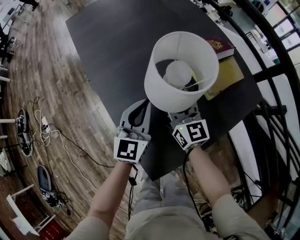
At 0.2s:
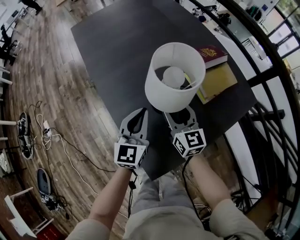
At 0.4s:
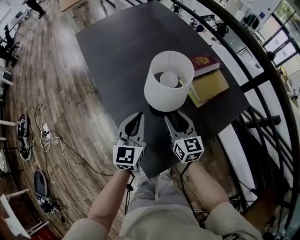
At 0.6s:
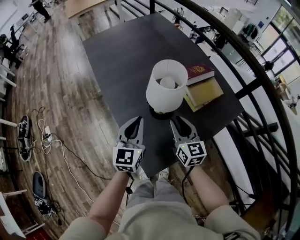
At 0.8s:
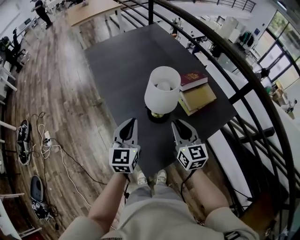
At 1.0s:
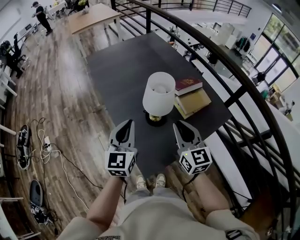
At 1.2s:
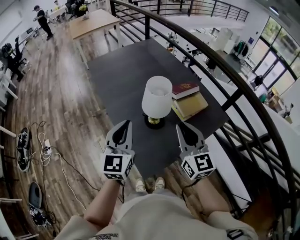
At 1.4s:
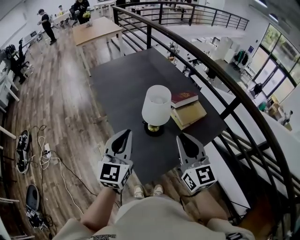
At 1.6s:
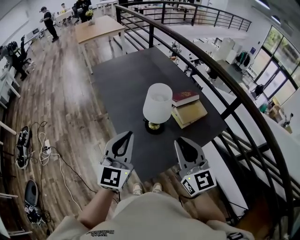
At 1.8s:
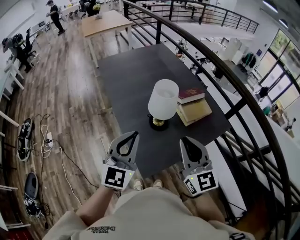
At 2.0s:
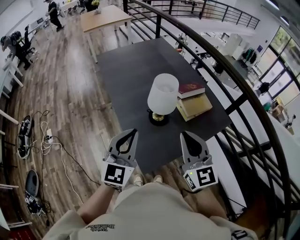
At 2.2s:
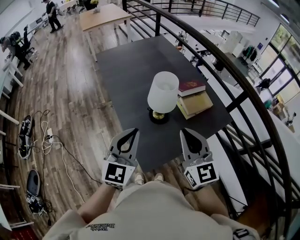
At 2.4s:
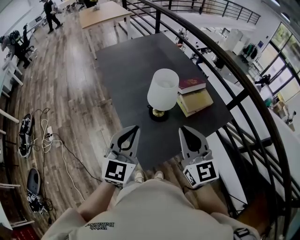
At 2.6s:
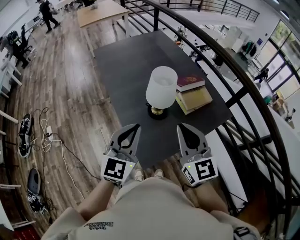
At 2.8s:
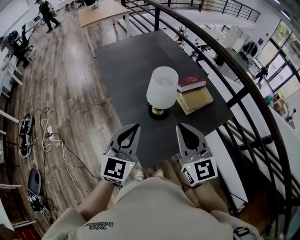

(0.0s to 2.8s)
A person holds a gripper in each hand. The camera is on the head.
0.0s - 1.4s: The two grippers go roughly 35 cm upward and backward. The right gripper closes.
1.4s - 2.8s: The grippers move only a little.

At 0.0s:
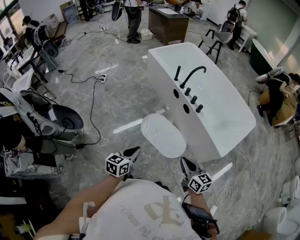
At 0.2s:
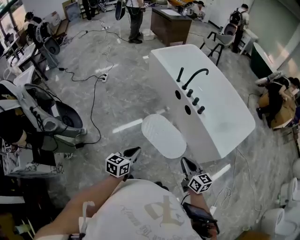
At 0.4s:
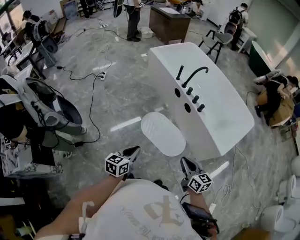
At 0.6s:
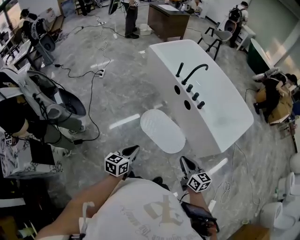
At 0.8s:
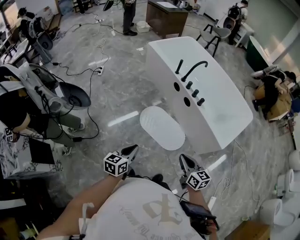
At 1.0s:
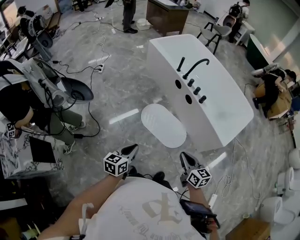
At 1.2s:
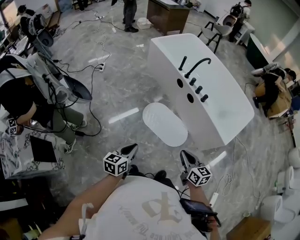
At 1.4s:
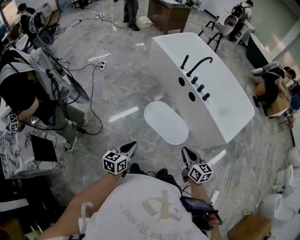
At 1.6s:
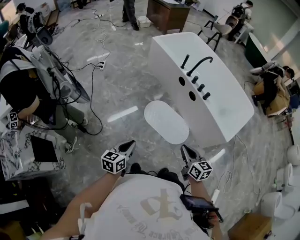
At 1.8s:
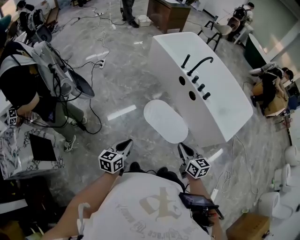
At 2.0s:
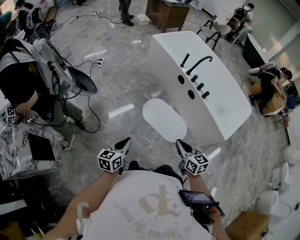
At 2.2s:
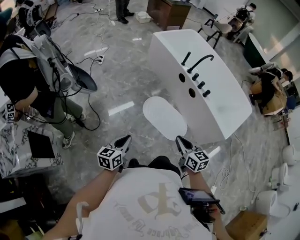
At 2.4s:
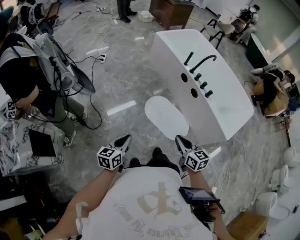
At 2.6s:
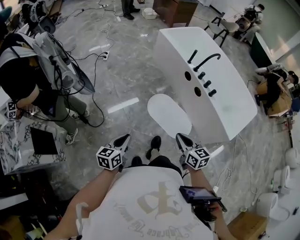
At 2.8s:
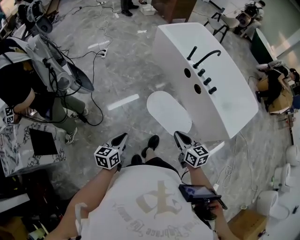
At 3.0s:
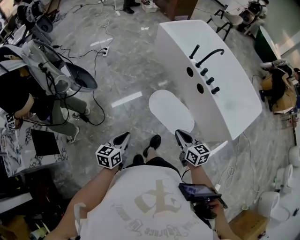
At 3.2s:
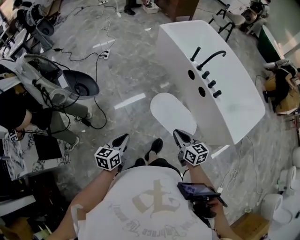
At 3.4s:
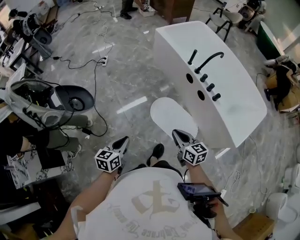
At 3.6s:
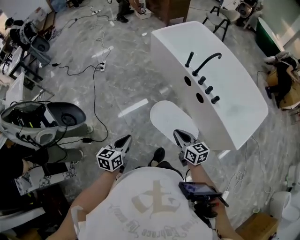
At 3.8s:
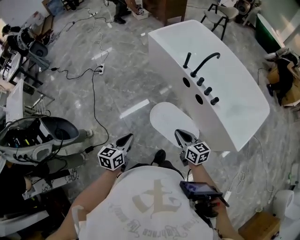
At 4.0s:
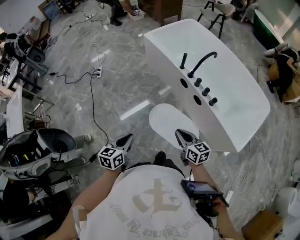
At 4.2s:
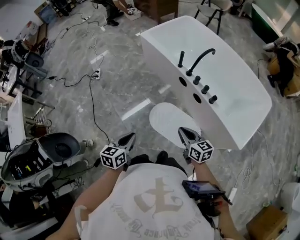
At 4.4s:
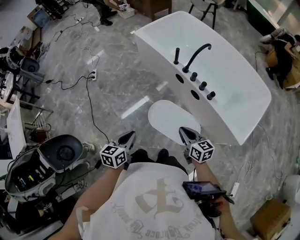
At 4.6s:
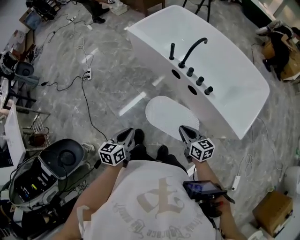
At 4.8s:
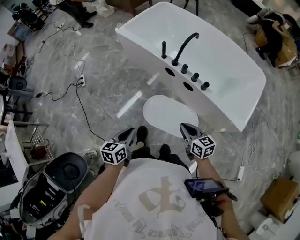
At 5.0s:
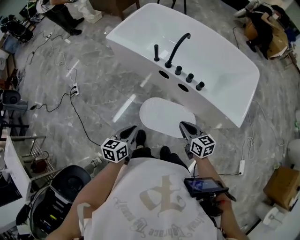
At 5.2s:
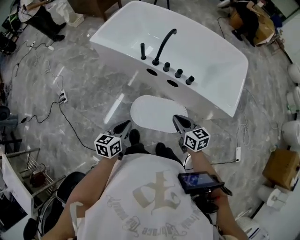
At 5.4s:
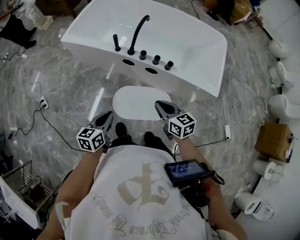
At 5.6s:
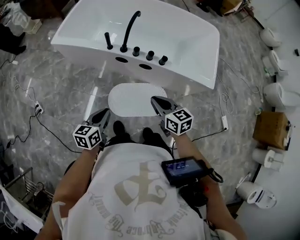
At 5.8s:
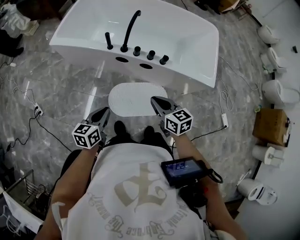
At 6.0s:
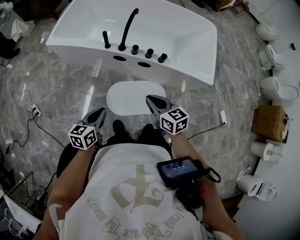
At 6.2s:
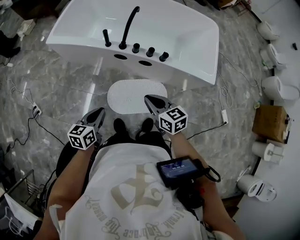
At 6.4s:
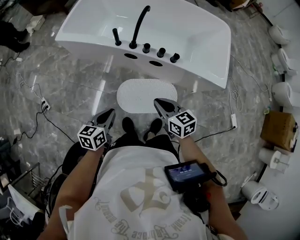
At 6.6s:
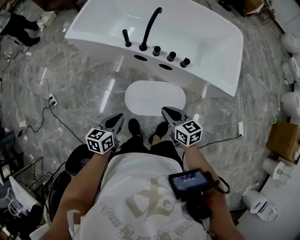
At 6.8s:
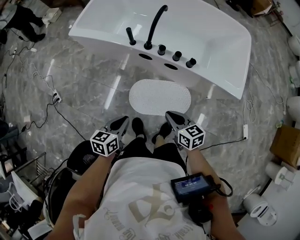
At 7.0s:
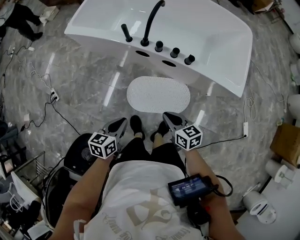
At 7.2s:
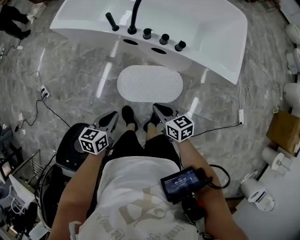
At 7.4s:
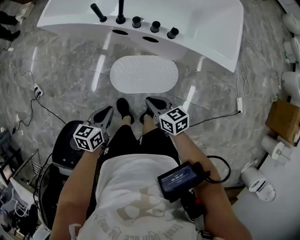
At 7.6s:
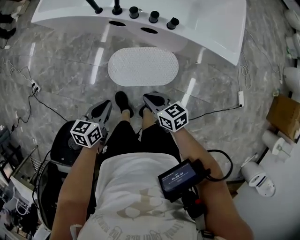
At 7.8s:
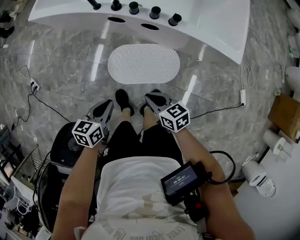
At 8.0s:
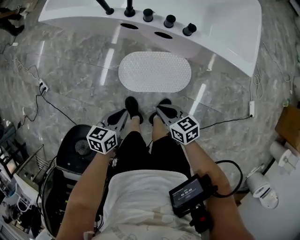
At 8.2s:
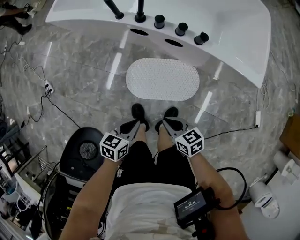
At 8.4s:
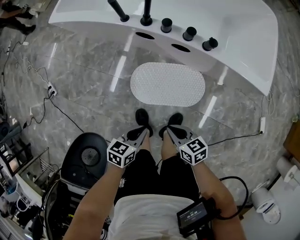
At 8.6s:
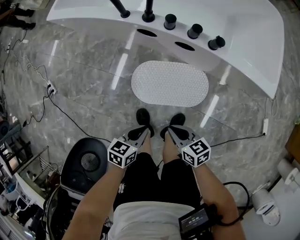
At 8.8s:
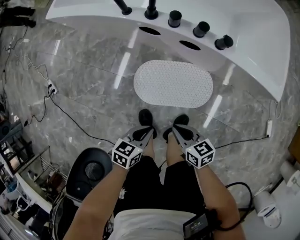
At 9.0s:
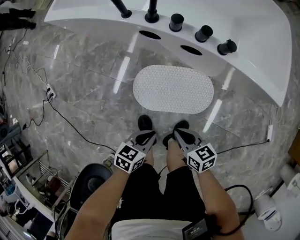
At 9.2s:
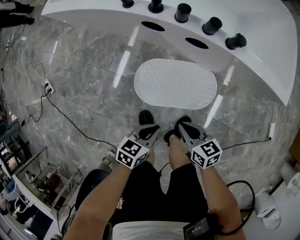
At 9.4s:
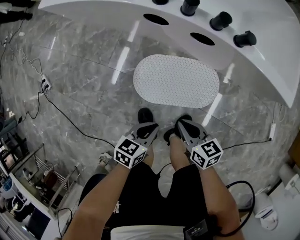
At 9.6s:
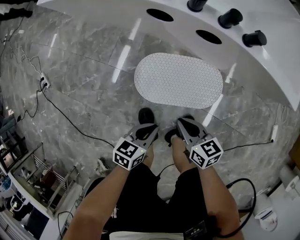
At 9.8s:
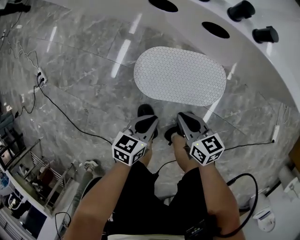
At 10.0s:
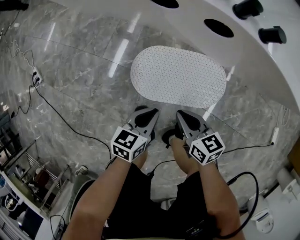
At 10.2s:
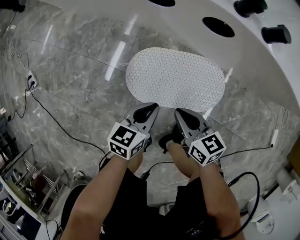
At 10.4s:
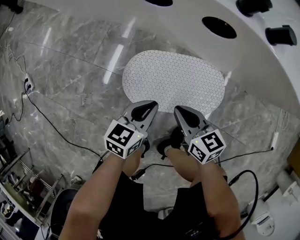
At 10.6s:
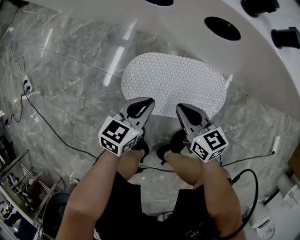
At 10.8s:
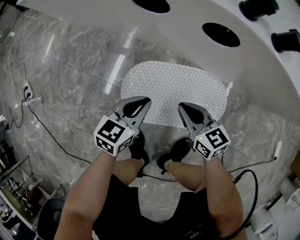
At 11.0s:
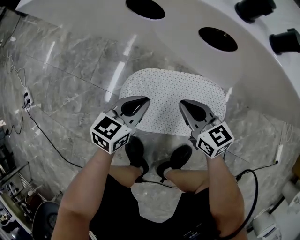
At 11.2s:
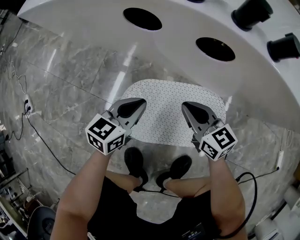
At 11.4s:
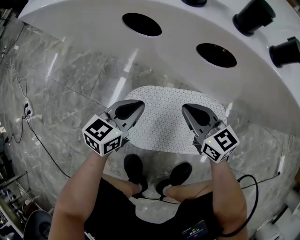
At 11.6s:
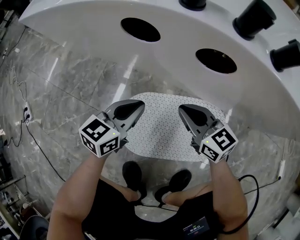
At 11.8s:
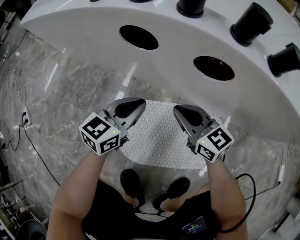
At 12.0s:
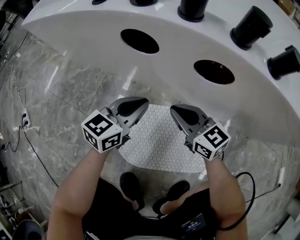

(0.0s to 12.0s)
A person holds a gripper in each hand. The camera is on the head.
0.0s - 1.6s: The right gripper shifts approximately 15 cm to the left, while the left gripper goes approximately 20 cm to the left and backward.
1.6s - 3.0s: The left gripper changes place by about 5 cm. Meanwhile the right gripper travels forward and to the left by some 10 cm.
3.0s - 4.4s: The two grippers go approximately 30 cm forward and to the right.
4.4s - 6.0s: The right gripper shifts by approximately 10 cm, and swivels about 30 degrees. Meanwhile the left gripper changes place by roughly 20 cm, and rotates approximately 40 degrees.
6.0s - 7.6s: The right gripper travels downward by some 20 cm. Meanwhile the left gripper moves downward and to the right, about 15 cm.
7.6s - 9.0s: The two grippers go approximately 15 cm downward.
9.0s - 10.4s: Both grippers travel together downward and forward, some 20 cm.
10.4s - 12.0s: The two grippers go about 20 cm forward. The right gripper swivels some 30 degrees.

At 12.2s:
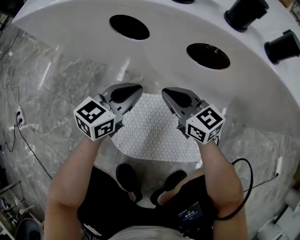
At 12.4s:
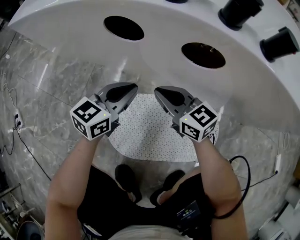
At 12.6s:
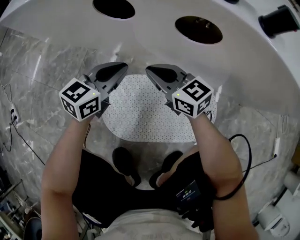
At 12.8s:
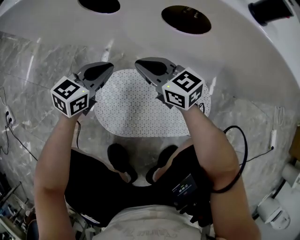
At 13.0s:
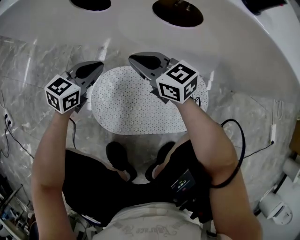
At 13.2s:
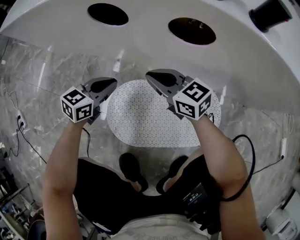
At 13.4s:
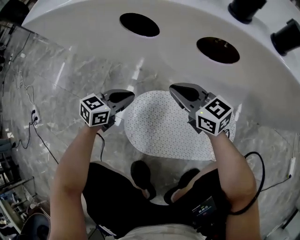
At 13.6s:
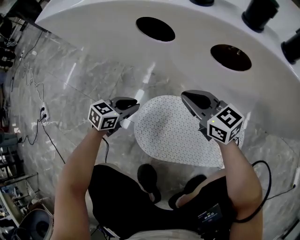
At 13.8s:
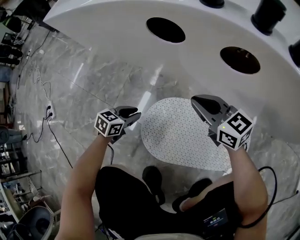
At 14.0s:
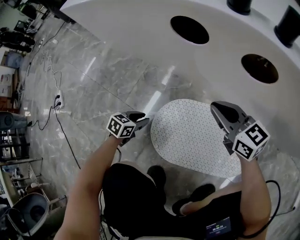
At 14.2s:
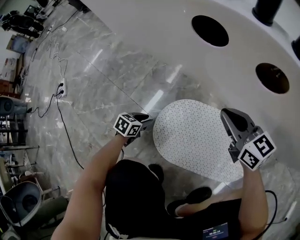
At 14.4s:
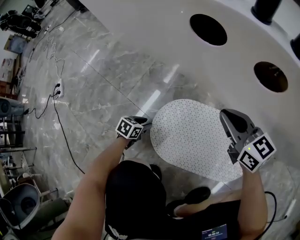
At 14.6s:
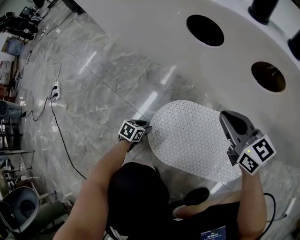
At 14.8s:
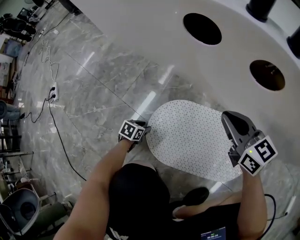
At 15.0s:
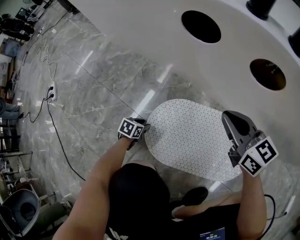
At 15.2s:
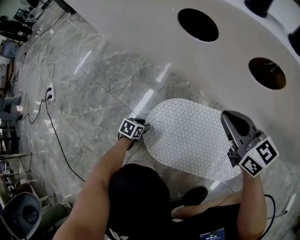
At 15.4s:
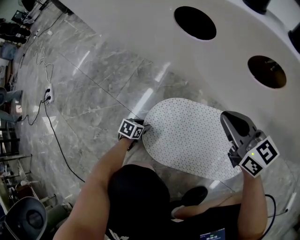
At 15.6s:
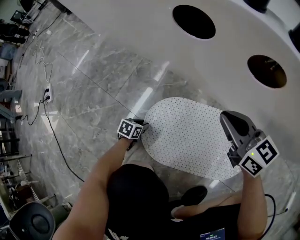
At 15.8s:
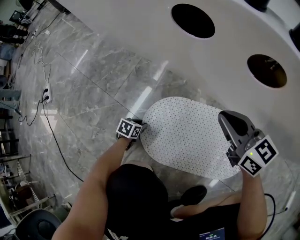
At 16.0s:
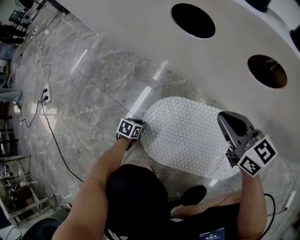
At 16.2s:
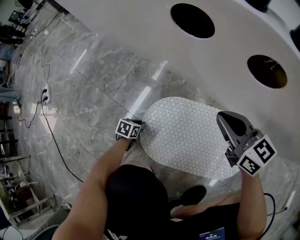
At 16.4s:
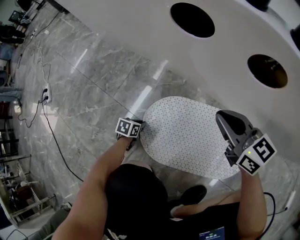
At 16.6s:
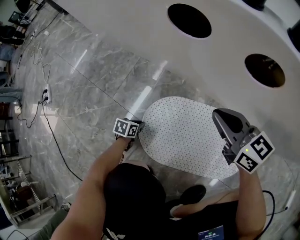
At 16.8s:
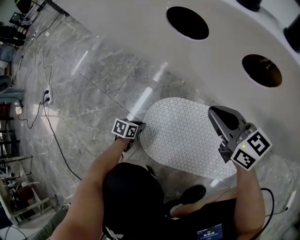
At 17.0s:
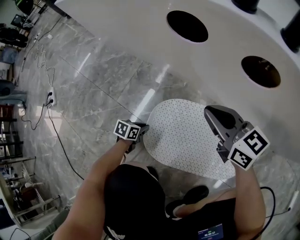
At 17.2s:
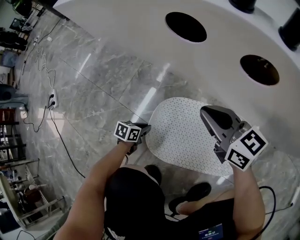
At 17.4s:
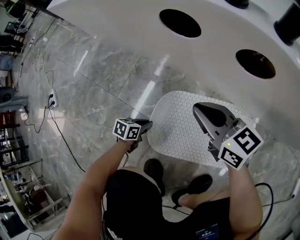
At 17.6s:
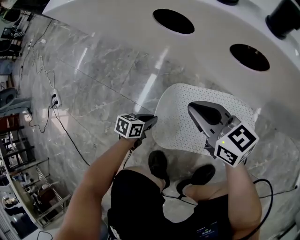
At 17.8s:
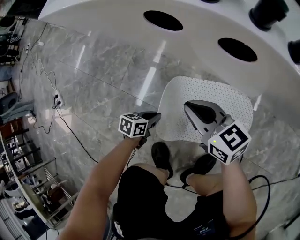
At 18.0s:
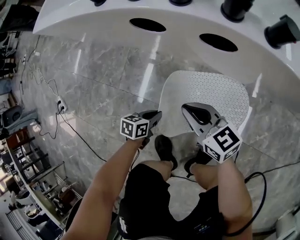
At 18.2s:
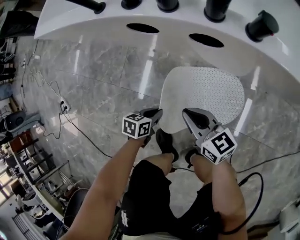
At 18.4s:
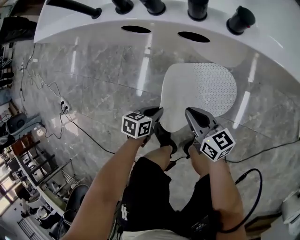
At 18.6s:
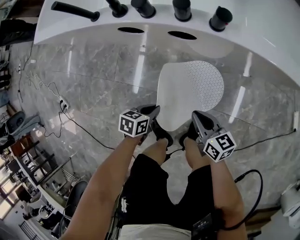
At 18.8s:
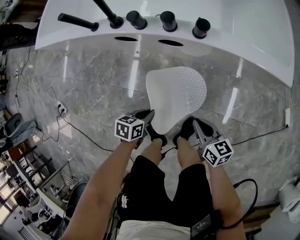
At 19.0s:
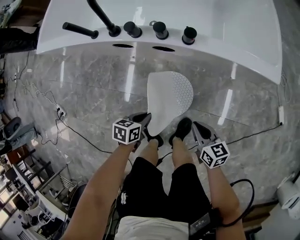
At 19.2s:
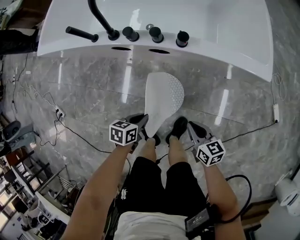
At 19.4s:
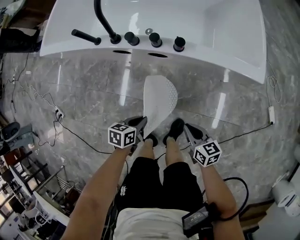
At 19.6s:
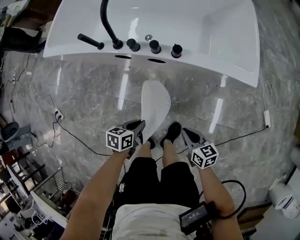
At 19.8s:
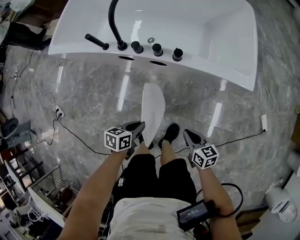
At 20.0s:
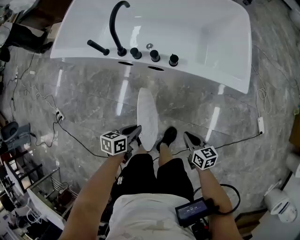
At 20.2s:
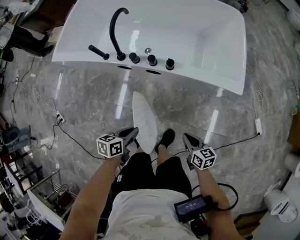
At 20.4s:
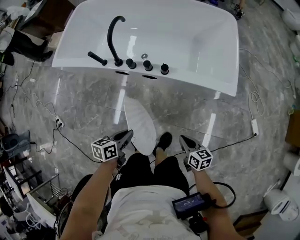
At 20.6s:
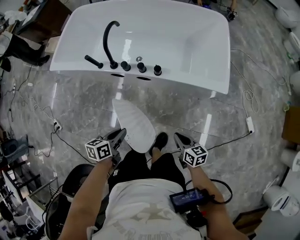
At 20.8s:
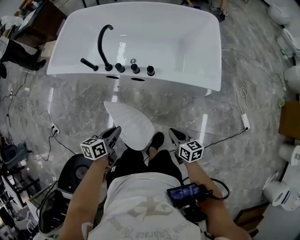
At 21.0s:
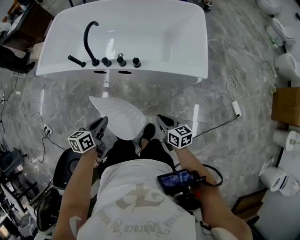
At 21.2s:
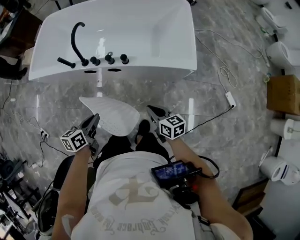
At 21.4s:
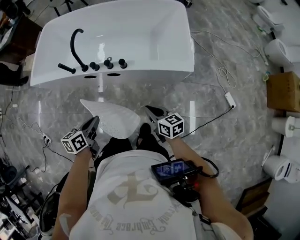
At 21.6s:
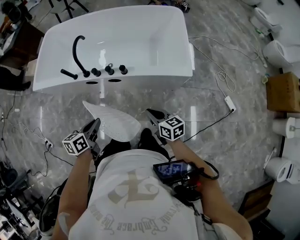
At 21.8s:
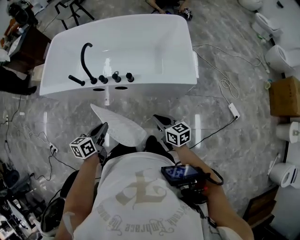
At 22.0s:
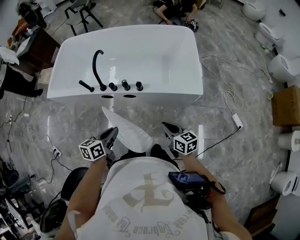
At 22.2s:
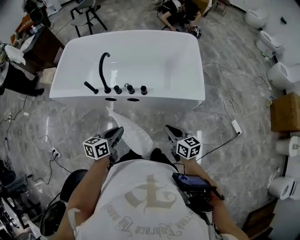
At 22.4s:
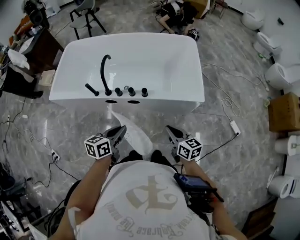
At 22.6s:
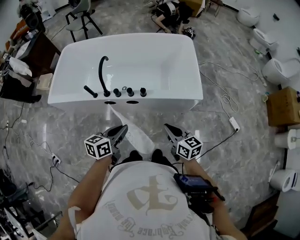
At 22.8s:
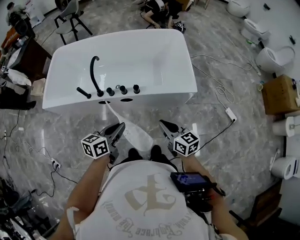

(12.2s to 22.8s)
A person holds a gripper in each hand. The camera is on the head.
12.2s - 13.8s: The left gripper shifts about 25 cm downward, to the left and backward, and turns by some 30 degrees.
13.8s - 15.2s: The left gripper travels downward and backward by roughly 20 cm, and changes its angle by approximately 20 degrees.
15.2s - 16.8s: The left gripper closes up.
16.8s - 18.2s: The left gripper moves upward and to the right, about 30 cm; the right gripper goes roughly 15 cm backward and upward.
18.2s - 19.8s: The left gripper heads upward, covering approximately 35 cm. Meanwhile the right gripper goes some 35 cm to the right, upward and backward, and turns by about 20 degrees.
19.8s - 21.2s: The grippers both shift upward by roughly 15 cm.
21.2s - 22.8s: The two grippers go about 10 cm upward. The left gripper turns by approximately 20 degrees.
